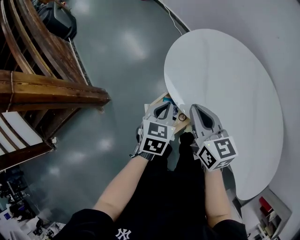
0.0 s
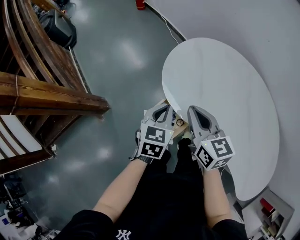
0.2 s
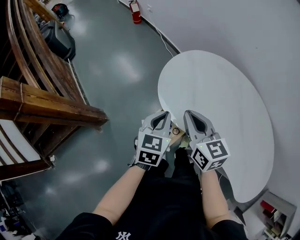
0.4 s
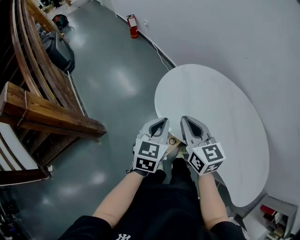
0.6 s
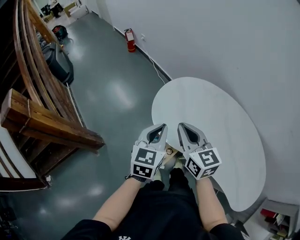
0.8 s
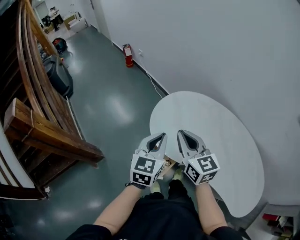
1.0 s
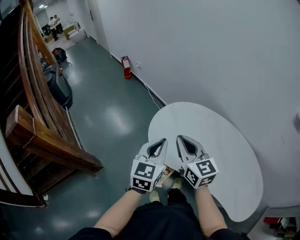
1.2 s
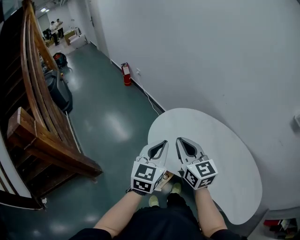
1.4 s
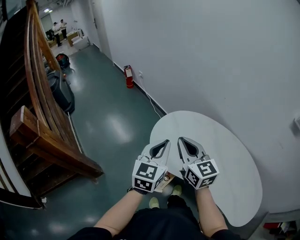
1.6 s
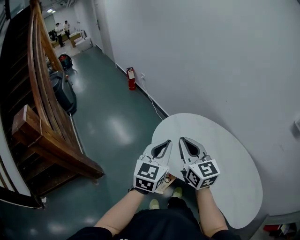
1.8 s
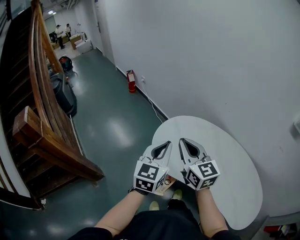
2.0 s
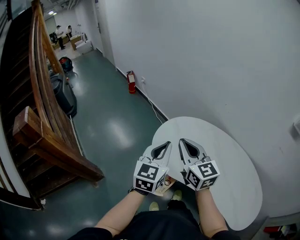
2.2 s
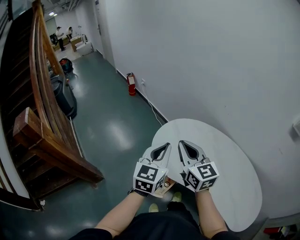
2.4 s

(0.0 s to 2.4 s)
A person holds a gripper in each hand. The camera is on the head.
0.0 s - 1.2 s: Both grippers travel together upward, roughly 20 cm. The right gripper turns by roughly 20 degrees. The left gripper changes its angle by about 30 degrees.
1.2 s - 2.4 s: The left gripper travels upward by some 5 cm.

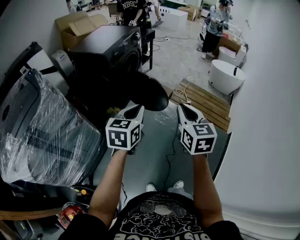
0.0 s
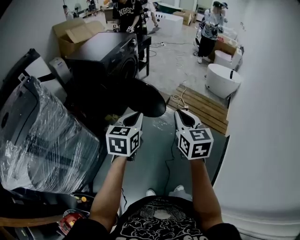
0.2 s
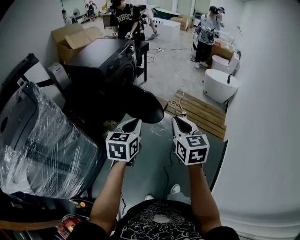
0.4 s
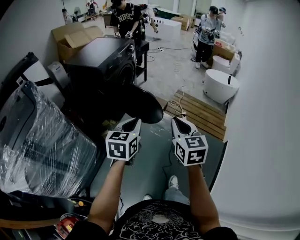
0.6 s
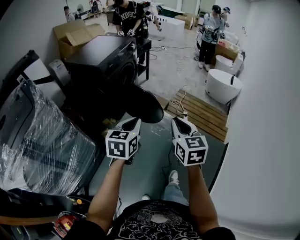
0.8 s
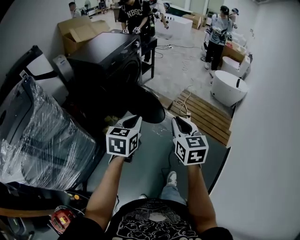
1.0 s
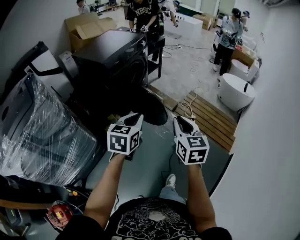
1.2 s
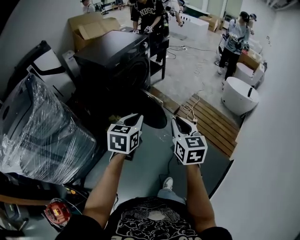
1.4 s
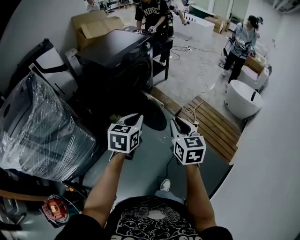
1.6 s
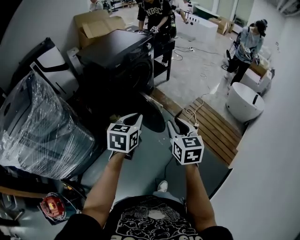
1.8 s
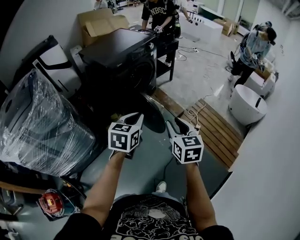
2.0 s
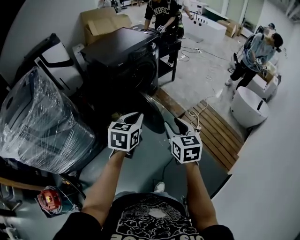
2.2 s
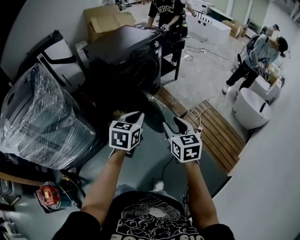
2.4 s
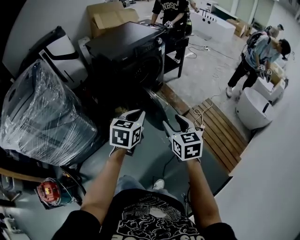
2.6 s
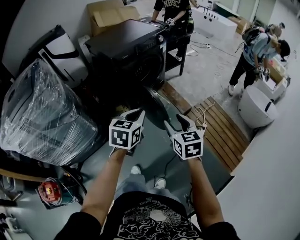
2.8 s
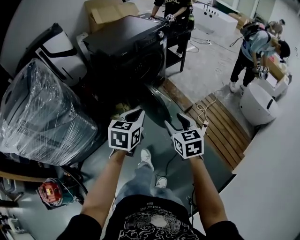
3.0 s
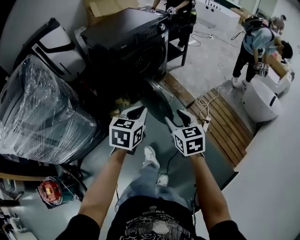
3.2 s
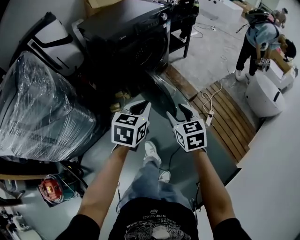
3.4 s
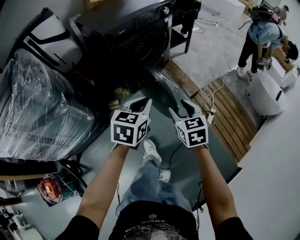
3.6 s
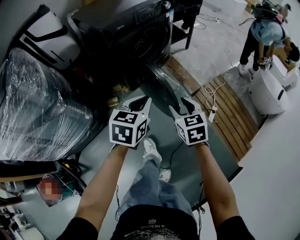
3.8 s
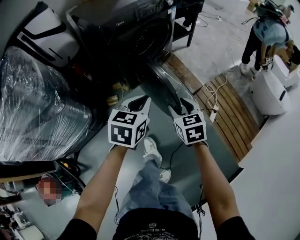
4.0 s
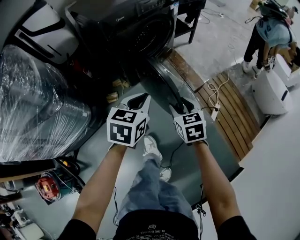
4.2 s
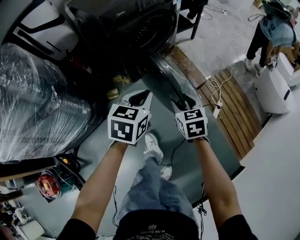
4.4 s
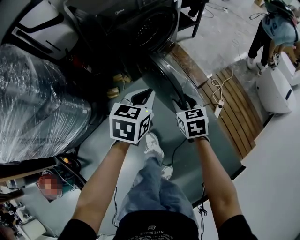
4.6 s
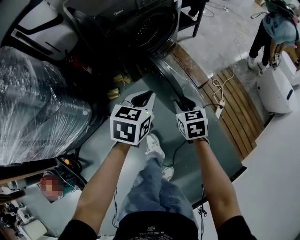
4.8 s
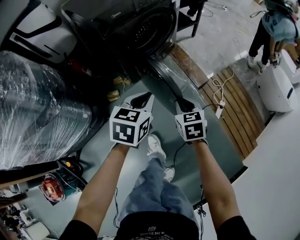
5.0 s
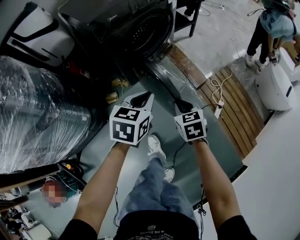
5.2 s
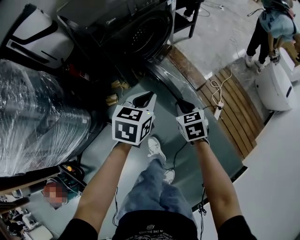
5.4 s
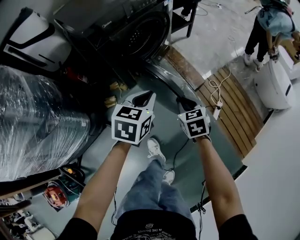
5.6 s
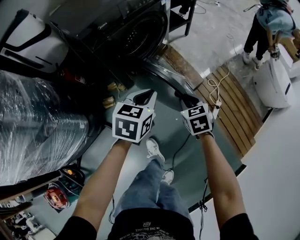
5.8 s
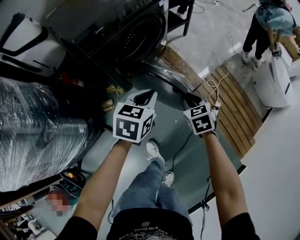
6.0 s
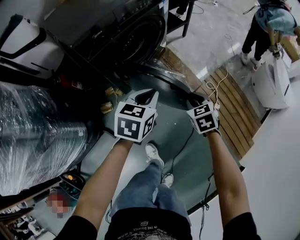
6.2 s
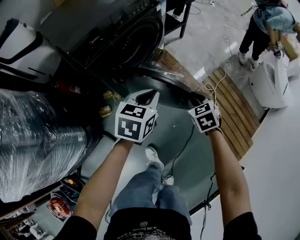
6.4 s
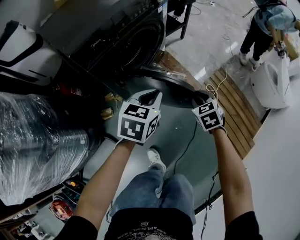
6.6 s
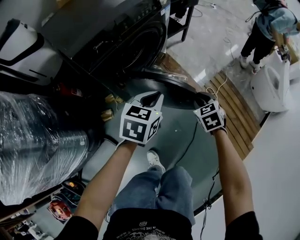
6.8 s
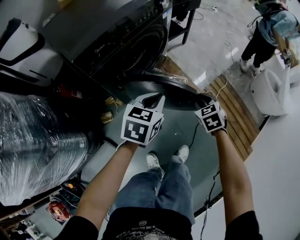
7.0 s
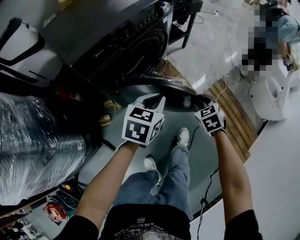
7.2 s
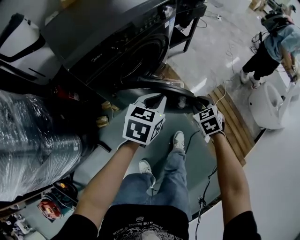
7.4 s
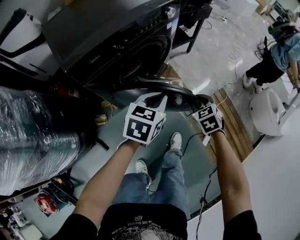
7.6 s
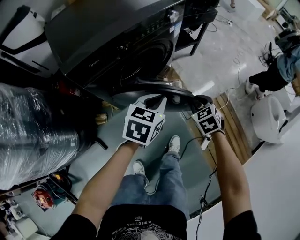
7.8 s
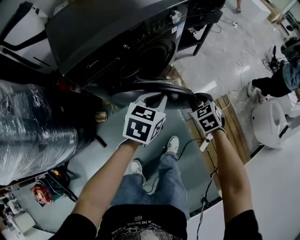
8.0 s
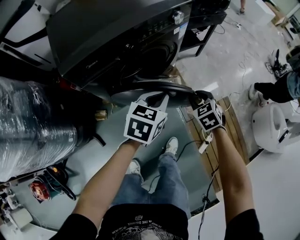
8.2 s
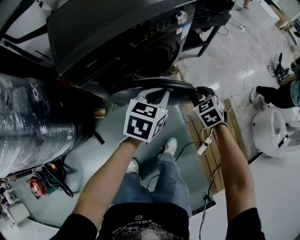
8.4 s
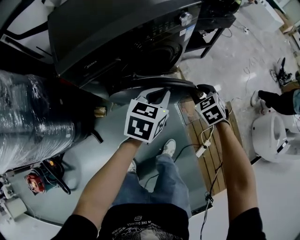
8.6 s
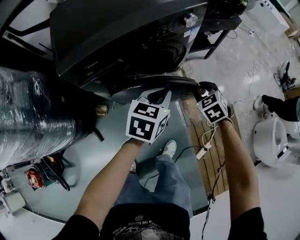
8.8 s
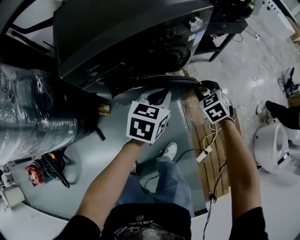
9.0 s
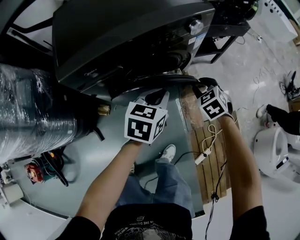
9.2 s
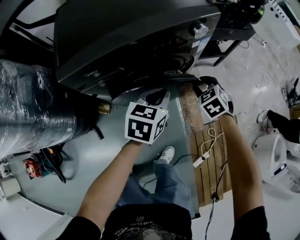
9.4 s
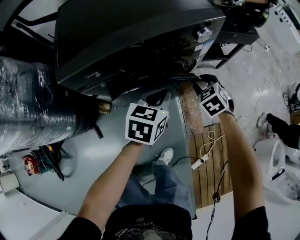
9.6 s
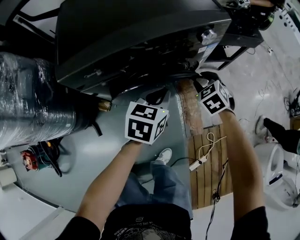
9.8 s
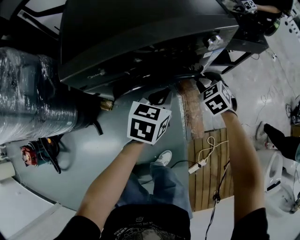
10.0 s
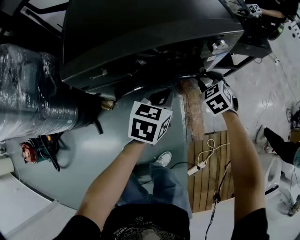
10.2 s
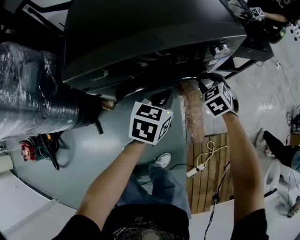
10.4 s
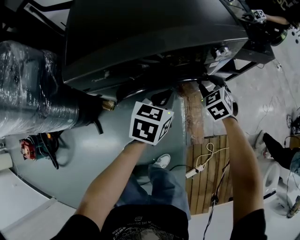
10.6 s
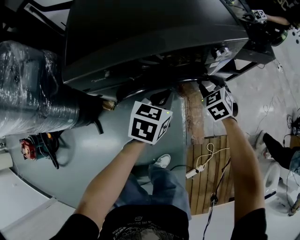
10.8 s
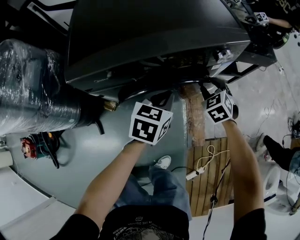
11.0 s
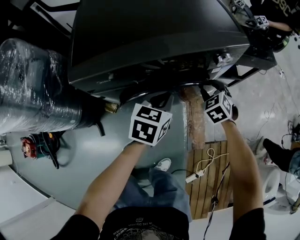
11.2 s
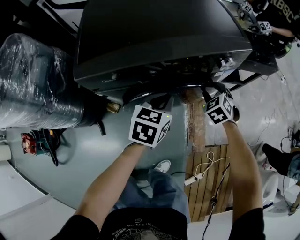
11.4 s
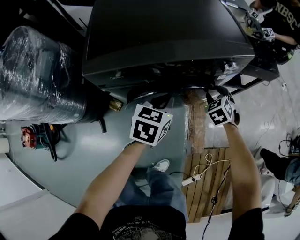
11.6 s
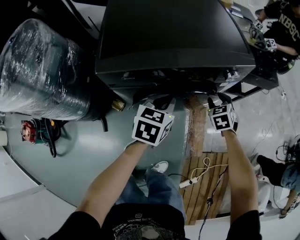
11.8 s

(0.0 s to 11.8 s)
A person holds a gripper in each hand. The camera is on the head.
0.0 s - 1.4 s: The left gripper travels forward and to the right by roughly 15 cm. Meanwhile the right gripper goes roughly 15 cm forward and downward.
1.4 s - 3.0 s: The right gripper goes roughly 15 cm forward and downward, swivels roughly 20 degrees, and opens its fingers. Meanwhile the left gripper moves forward and downward, roughly 10 cm.
3.0 s - 4.4 s: The grippers both shift downward and forward by some 20 cm.
4.4 s - 6.0 s: The right gripper travels forward and to the right by roughly 15 cm, and closes its fingers. Meanwhile the left gripper shifts about 10 cm forward.
6.0 s - 7.4 s: The two grippers go roughly 15 cm forward.
7.4 s - 8.8 s: Both grippers move forward, about 15 cm. The right gripper swivels roughly 20 degrees.
8.8 s - 10.4 s: The left gripper travels forward by some 10 cm, while the right gripper heads forward, covering about 15 cm.
10.4 s - 11.8 s: The left gripper heads to the left, covering roughly 5 cm.

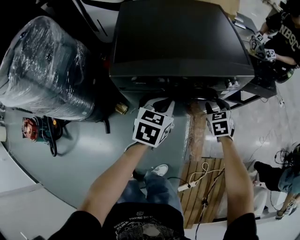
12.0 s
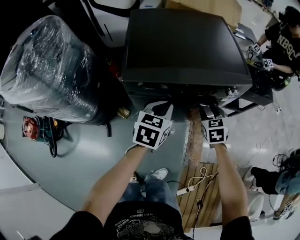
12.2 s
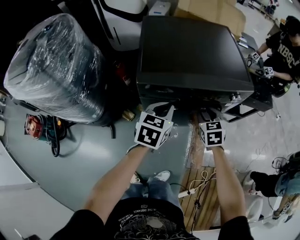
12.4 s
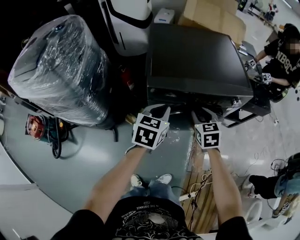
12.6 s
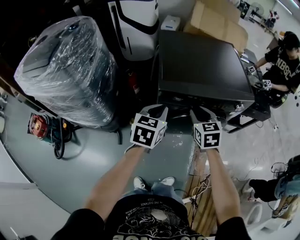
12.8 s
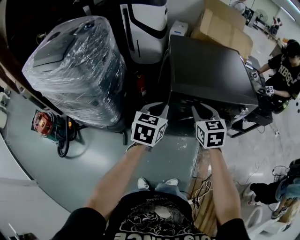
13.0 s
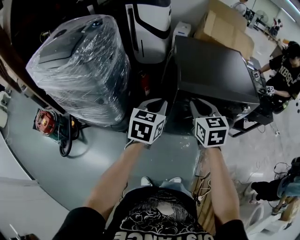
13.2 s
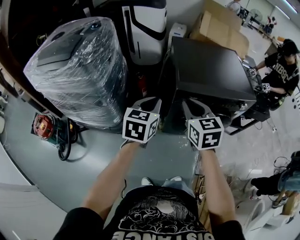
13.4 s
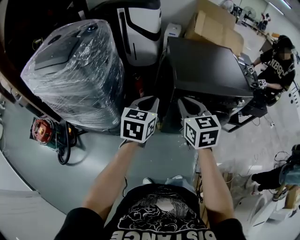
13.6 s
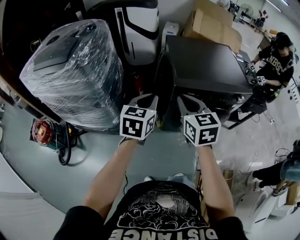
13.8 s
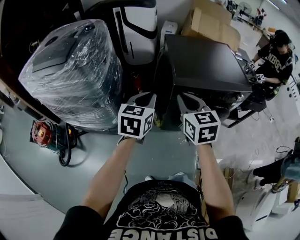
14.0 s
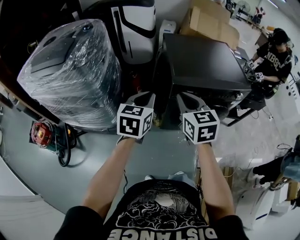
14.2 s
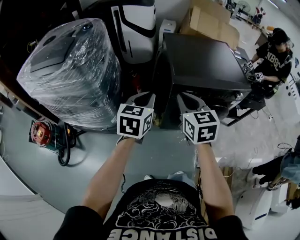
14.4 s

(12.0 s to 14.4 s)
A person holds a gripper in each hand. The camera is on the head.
12.0 s - 13.2 s: The two grippers go about 35 cm to the left and upward. The right gripper rotates some 30 degrees, and closes.
13.2 s - 14.4 s: The right gripper is displaced to the left by some 5 cm.

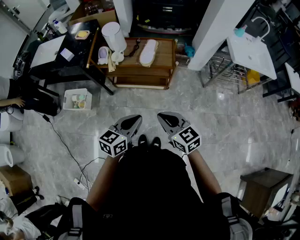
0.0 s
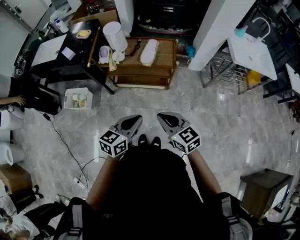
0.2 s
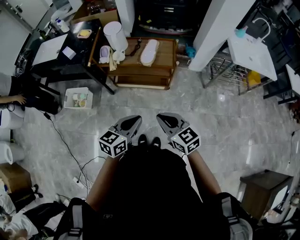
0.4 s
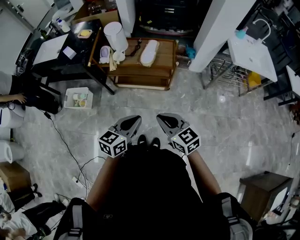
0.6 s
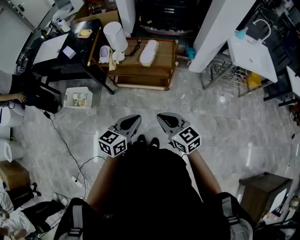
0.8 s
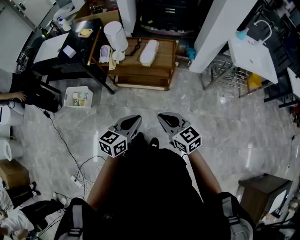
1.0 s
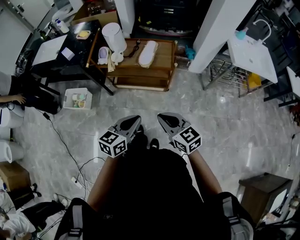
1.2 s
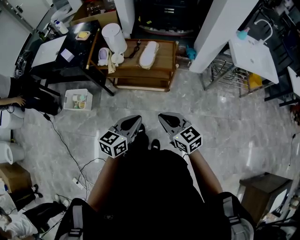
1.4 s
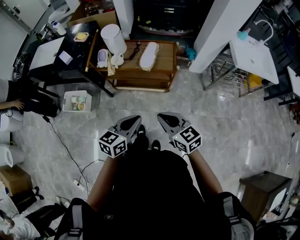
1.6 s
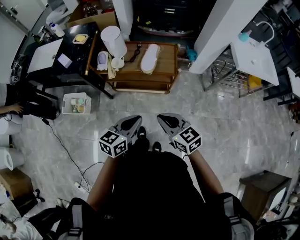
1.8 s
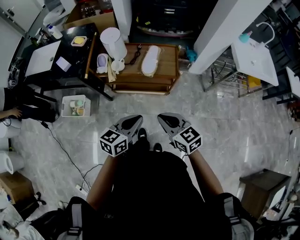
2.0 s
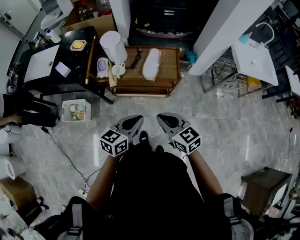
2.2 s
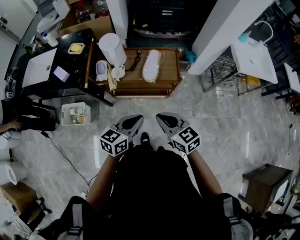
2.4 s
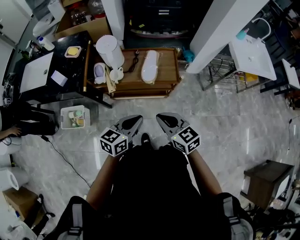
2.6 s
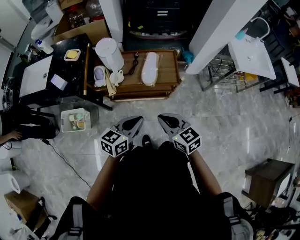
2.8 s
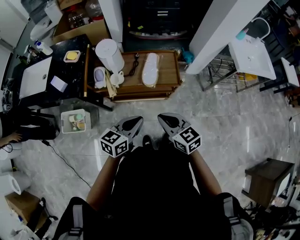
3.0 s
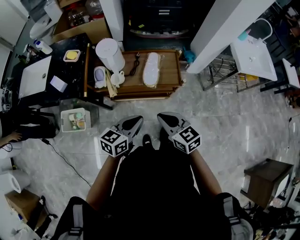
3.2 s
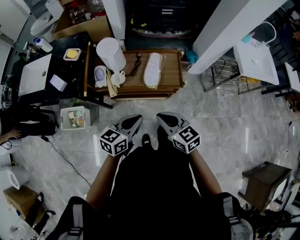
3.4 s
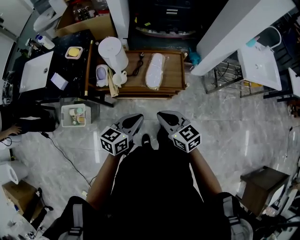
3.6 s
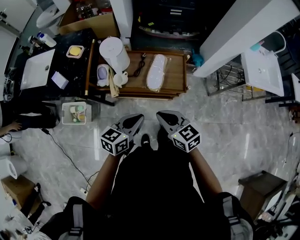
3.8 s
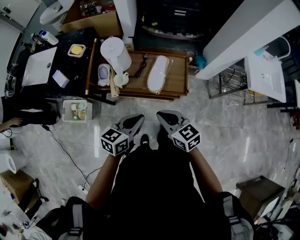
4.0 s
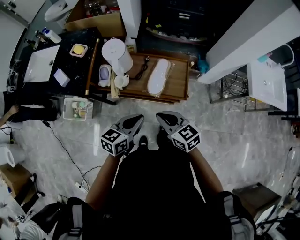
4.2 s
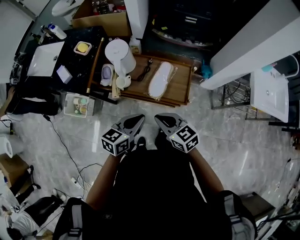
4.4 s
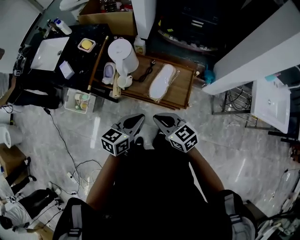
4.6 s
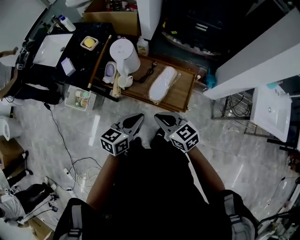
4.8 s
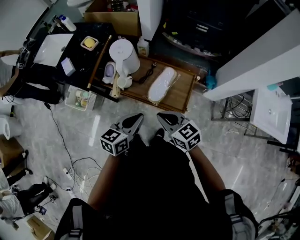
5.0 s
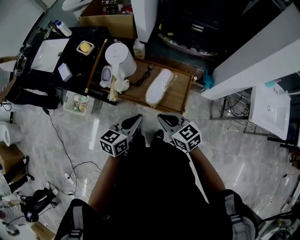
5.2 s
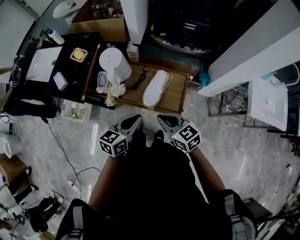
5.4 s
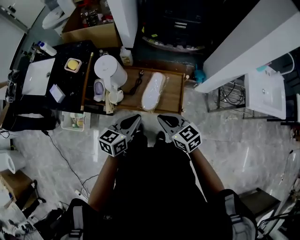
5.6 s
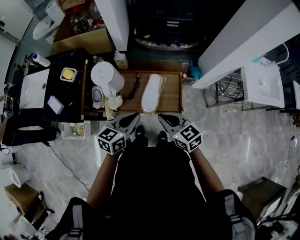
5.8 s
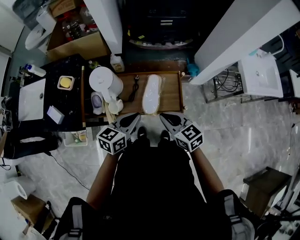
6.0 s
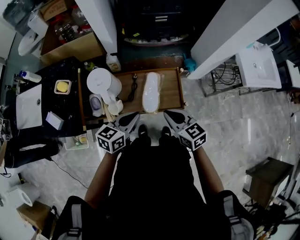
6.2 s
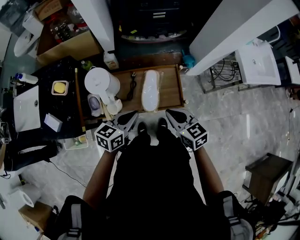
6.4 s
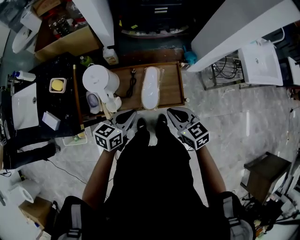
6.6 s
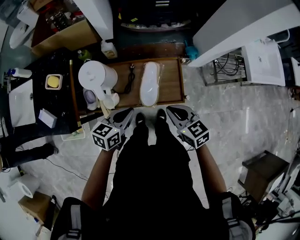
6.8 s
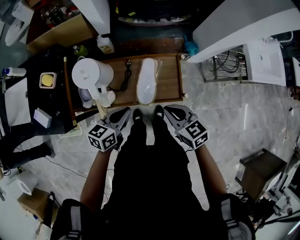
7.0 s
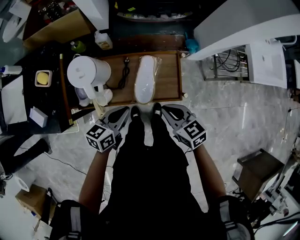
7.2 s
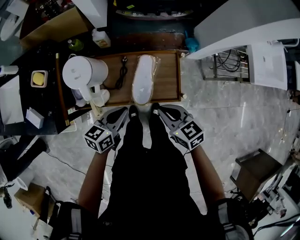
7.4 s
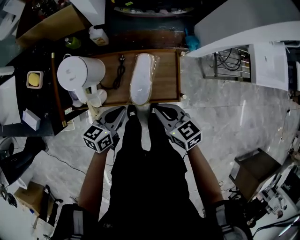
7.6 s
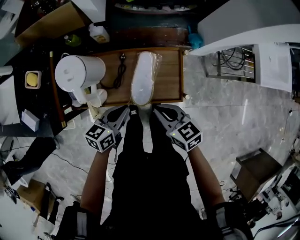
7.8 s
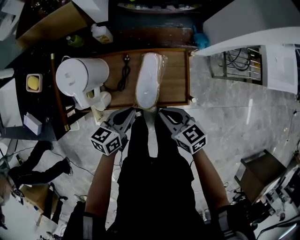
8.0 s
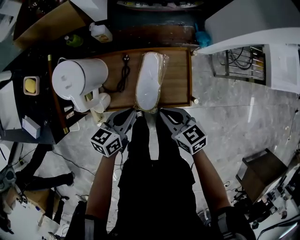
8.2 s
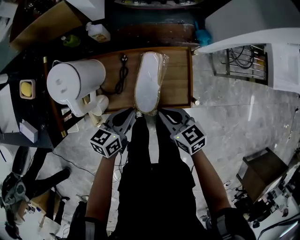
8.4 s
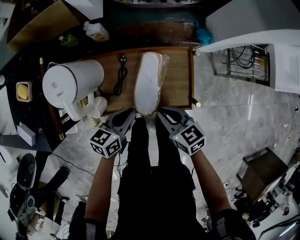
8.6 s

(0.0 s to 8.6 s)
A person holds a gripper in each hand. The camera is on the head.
0.0 s - 1.4 s: The grippers make only small movements.
1.4 s - 2.8 s: The two grippers go some 20 cm forward and to the left.
2.8 s - 4.4 s: The two grippers go roughly 10 cm forward.
4.4 s - 5.8 s: The grippers both shift forward by about 10 cm.
5.8 s - 7.2 s: The two grippers go some 10 cm downward.
7.2 s - 8.6 s: The grippers both shift downward by roughly 15 cm.
